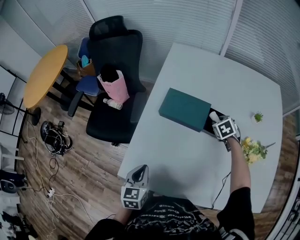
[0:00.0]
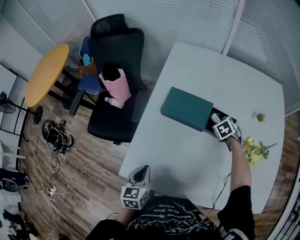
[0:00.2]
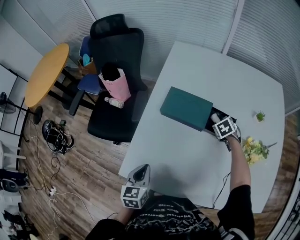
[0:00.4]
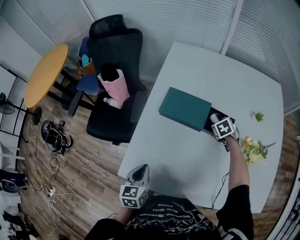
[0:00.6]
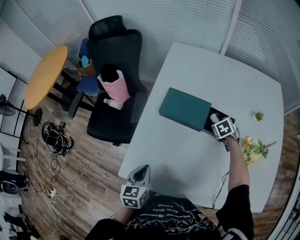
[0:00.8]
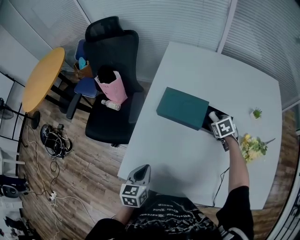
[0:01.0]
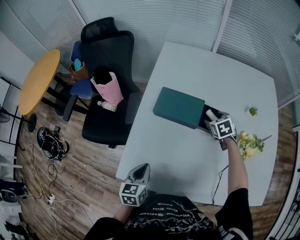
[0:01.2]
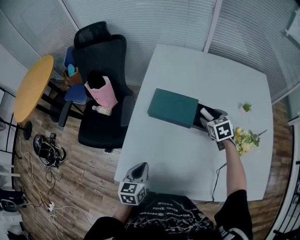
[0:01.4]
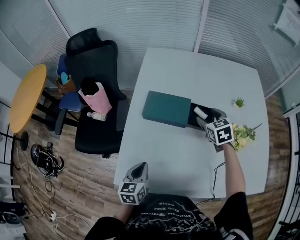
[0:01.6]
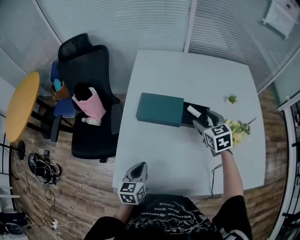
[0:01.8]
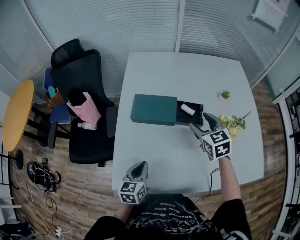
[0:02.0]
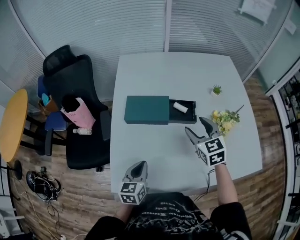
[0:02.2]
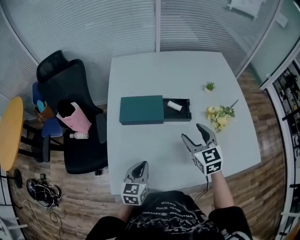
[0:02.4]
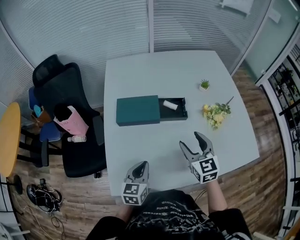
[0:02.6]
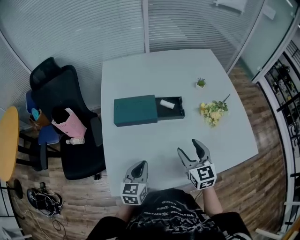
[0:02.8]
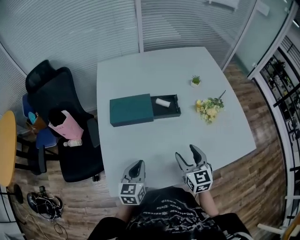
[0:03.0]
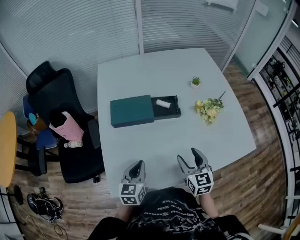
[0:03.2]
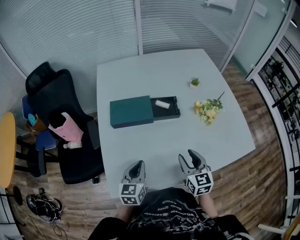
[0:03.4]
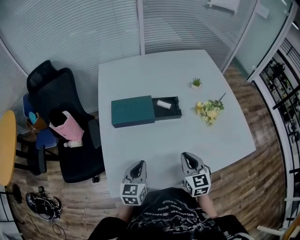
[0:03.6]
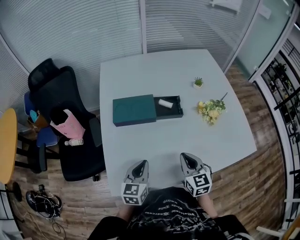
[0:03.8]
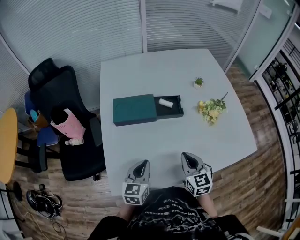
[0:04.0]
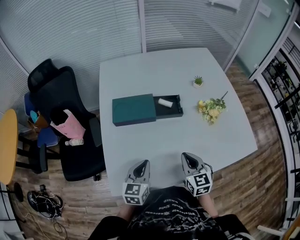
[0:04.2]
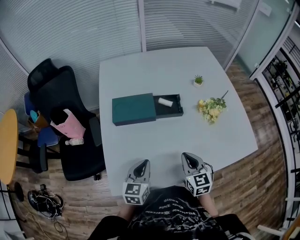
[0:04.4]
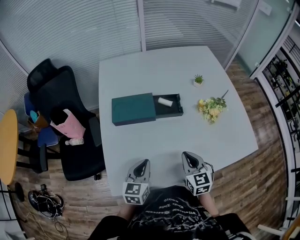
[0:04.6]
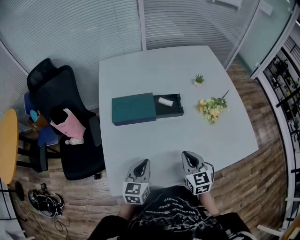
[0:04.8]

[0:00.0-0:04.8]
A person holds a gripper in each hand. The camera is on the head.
0:00.0 to 0:01.6: The right gripper is displaced upward by about 10 cm, turns by roughly 20 degrees, and opens its fingers.
0:01.6 to 0:03.2: The right gripper goes about 25 cm backward, and rotates roughly 30 degrees. The left gripper travels to the right by about 5 cm, and swivels about 20 degrees.
0:03.2 to 0:04.8: The right gripper closes up.

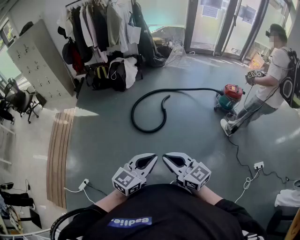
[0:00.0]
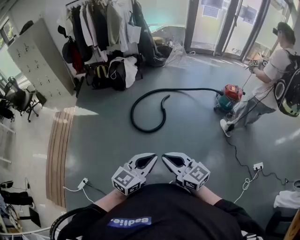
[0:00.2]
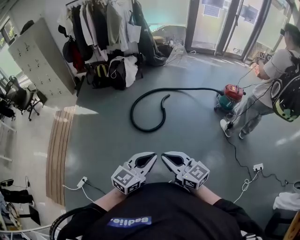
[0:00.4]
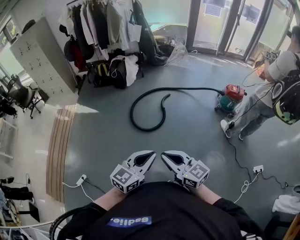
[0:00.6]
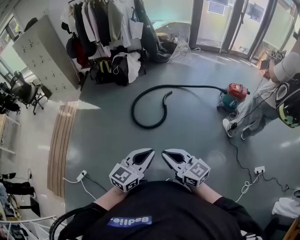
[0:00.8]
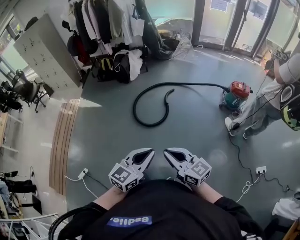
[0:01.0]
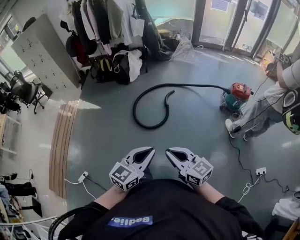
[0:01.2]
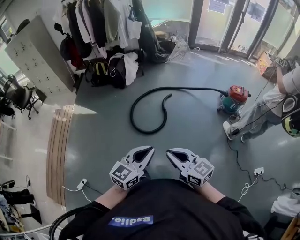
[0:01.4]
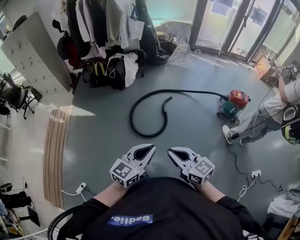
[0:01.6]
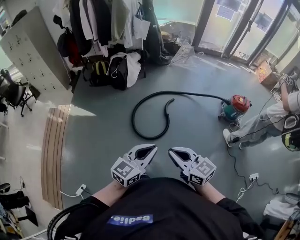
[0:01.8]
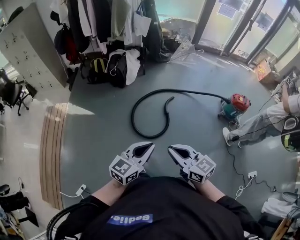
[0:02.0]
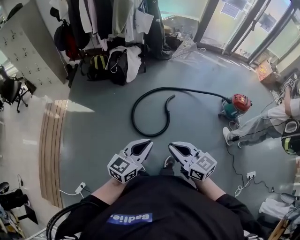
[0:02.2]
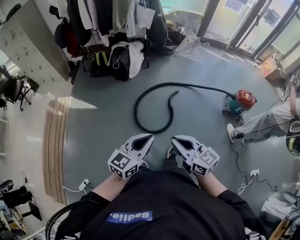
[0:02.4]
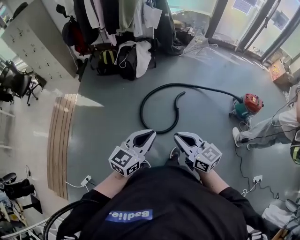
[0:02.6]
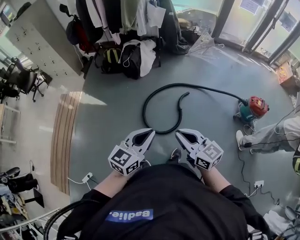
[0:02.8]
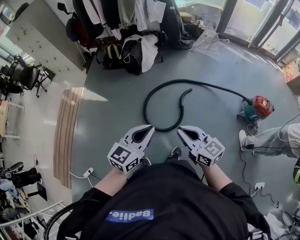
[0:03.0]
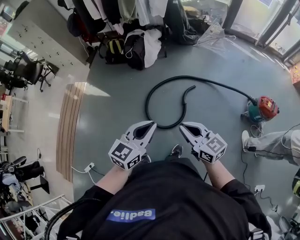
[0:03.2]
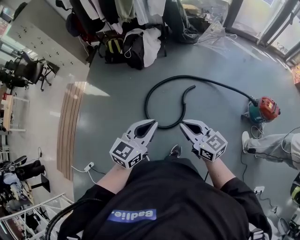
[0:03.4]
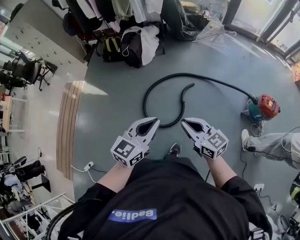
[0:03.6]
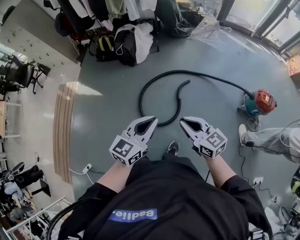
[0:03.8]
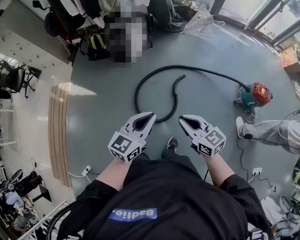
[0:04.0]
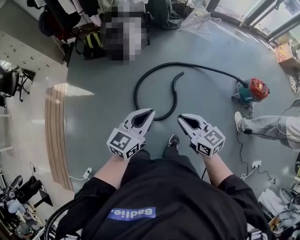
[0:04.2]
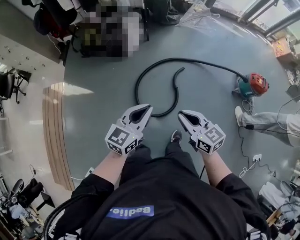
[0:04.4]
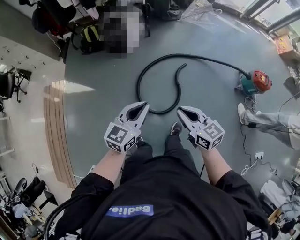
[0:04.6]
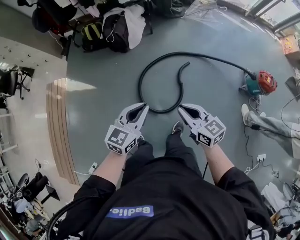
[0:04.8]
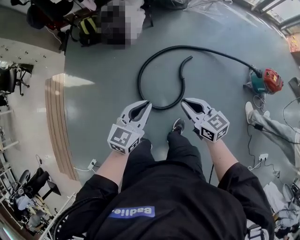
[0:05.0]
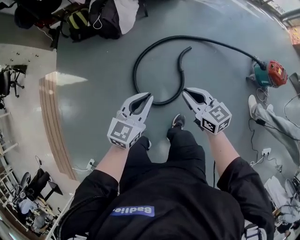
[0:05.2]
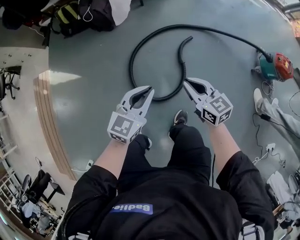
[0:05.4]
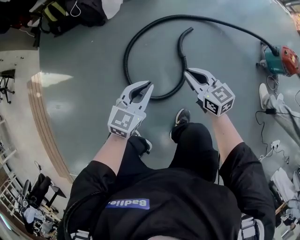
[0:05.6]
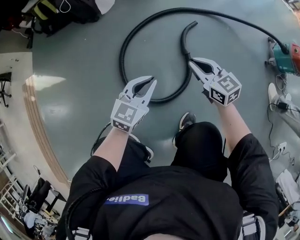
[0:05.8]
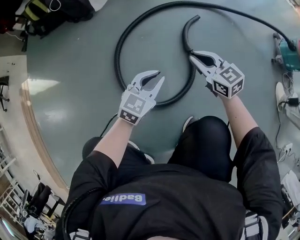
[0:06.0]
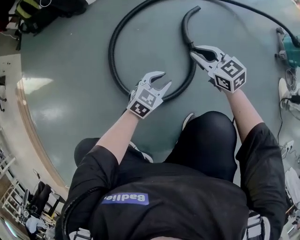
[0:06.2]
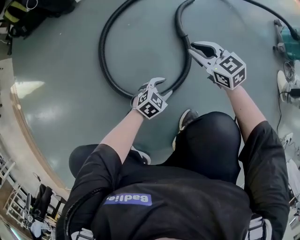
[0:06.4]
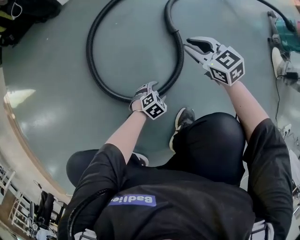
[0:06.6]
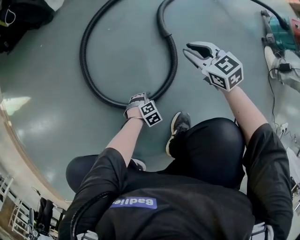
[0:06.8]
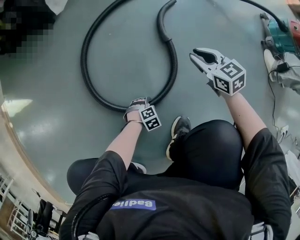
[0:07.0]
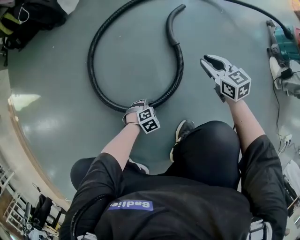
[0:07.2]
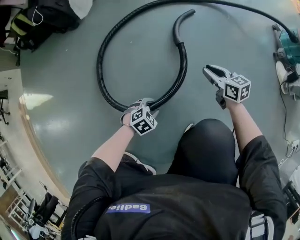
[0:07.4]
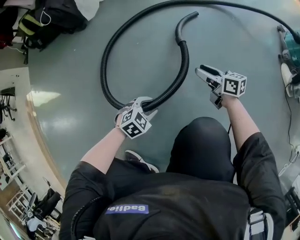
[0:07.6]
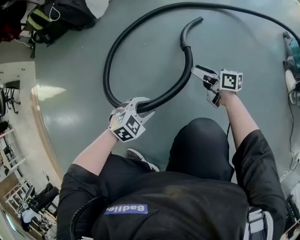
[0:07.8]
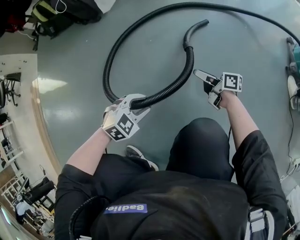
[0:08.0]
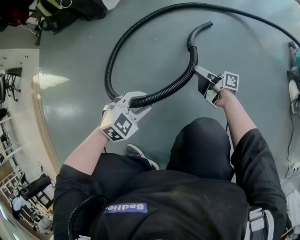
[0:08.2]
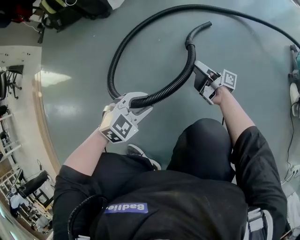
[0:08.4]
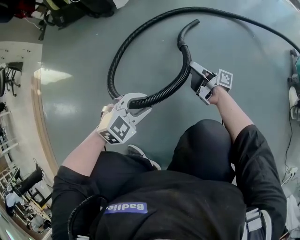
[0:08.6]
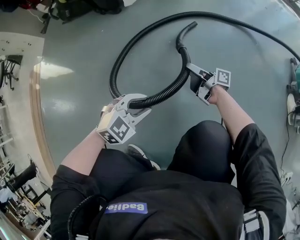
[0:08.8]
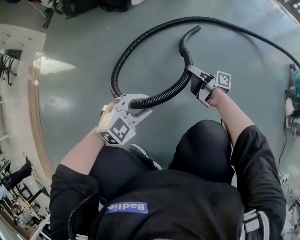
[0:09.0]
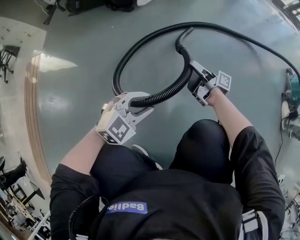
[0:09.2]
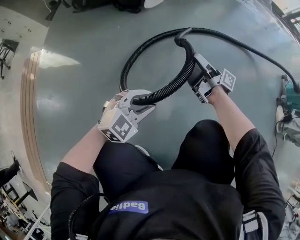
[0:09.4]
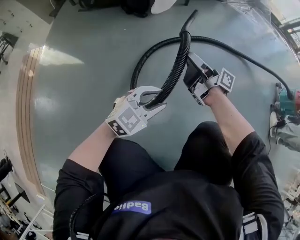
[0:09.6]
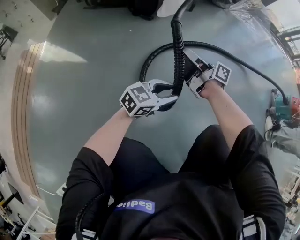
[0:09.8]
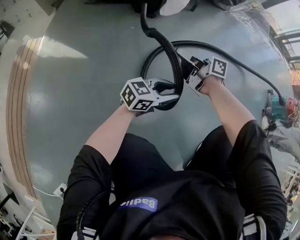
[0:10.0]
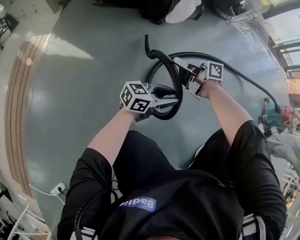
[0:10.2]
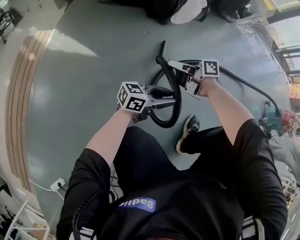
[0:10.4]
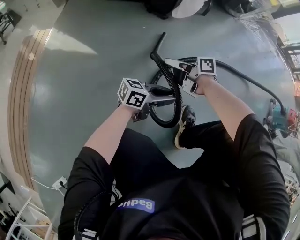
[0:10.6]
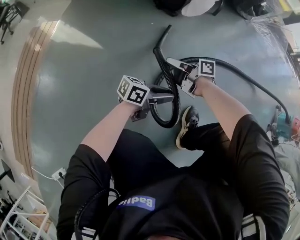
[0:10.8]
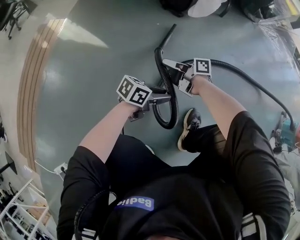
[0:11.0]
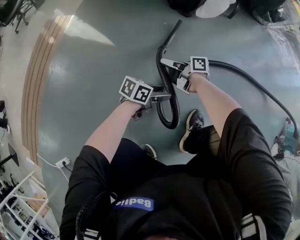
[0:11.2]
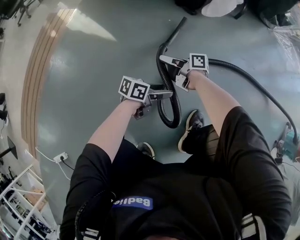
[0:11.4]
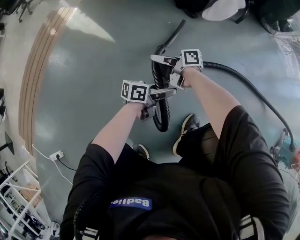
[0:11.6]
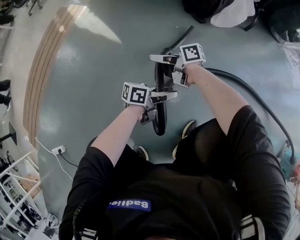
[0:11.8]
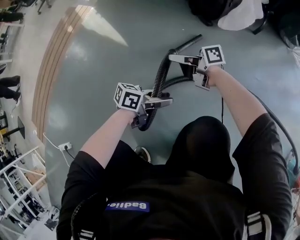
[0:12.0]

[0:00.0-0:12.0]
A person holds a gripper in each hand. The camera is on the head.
0:00.0 to 0:01.6: The grippers both shift forward by some 20 cm.
0:01.6 to 0:03.0: Both grippers travel together forward, some 25 cm.
0:03.0 to 0:04.4: The grippers both shift forward, downward and to the left by roughly 15 cm.
0:04.4 to 0:06.0: The two grippers go about 60 cm downward. The left gripper swivels roughly 20 degrees.
0:06.0 to 0:07.6: Both grippers move downward, roughly 15 cm. The right gripper twists about 40 degrees clockwise, seen from behind, and opens up, while the left gripper tilts its fingers approximately 30 degrees downward, and opens its fingers.
0:07.6 to 0:09.0: The left gripper travels upward by about 15 cm, and changes its angle by roughly 20 degrees. Meanwhile the right gripper moves approximately 20 cm, and turns by some 40 degrees.
0:09.0 to 0:10.4: The left gripper shifts by roughly 20 cm, and tilts its fingers roughly 40 degrees upward; the right gripper ends up approximately 40 cm from where it was, swivels about 40 degrees, and closes up.
0:10.4 to 0:12.0: The right gripper ends up some 15 cm from where it was, and turns by roughly 30 degrees; the left gripper moves approximately 15 cm, changes its angle by about 40 degrees, and opens, then closes again.

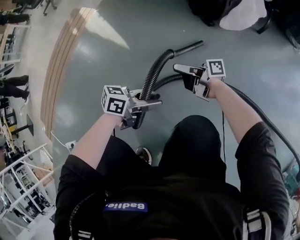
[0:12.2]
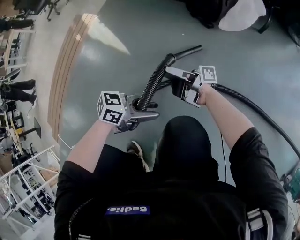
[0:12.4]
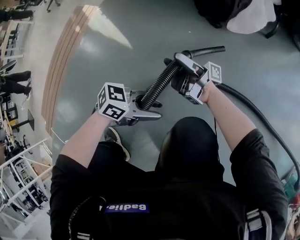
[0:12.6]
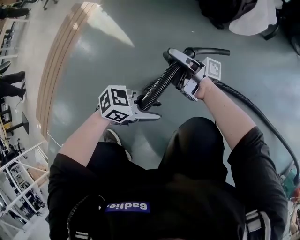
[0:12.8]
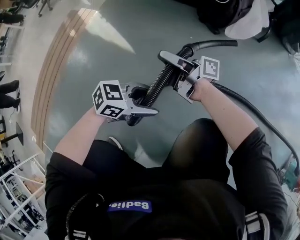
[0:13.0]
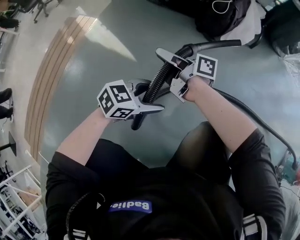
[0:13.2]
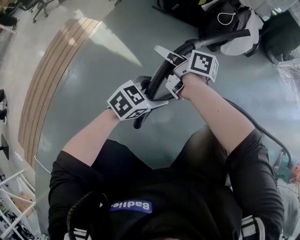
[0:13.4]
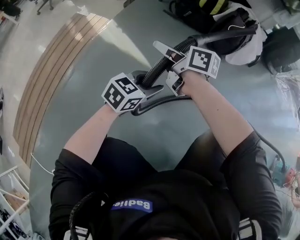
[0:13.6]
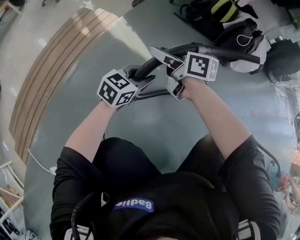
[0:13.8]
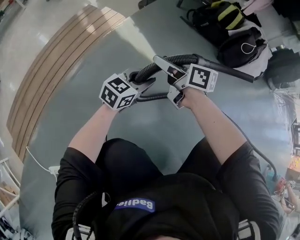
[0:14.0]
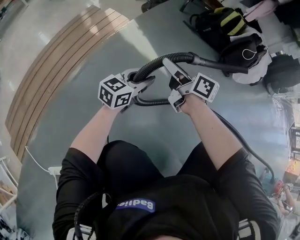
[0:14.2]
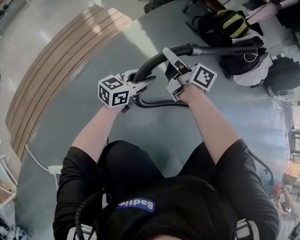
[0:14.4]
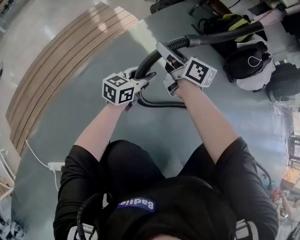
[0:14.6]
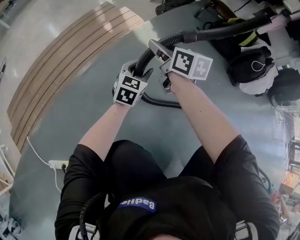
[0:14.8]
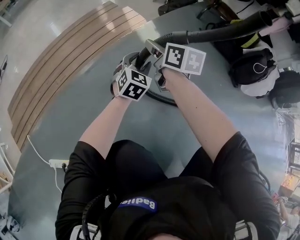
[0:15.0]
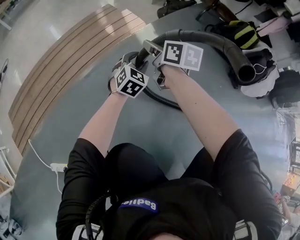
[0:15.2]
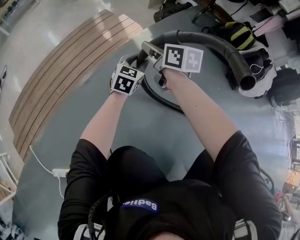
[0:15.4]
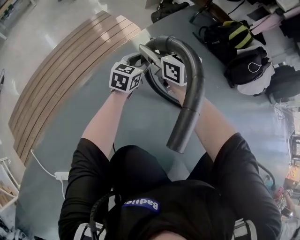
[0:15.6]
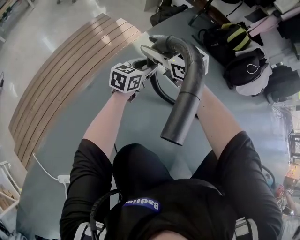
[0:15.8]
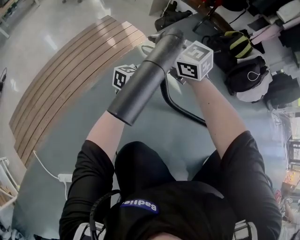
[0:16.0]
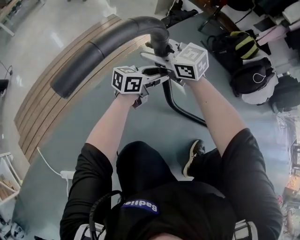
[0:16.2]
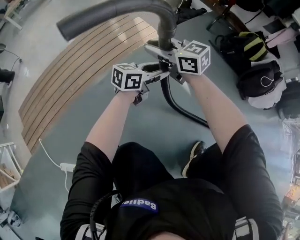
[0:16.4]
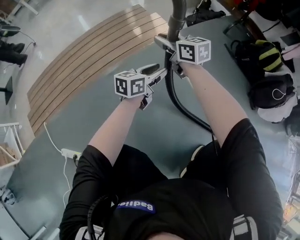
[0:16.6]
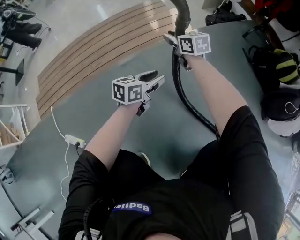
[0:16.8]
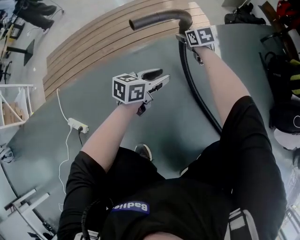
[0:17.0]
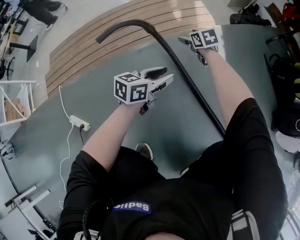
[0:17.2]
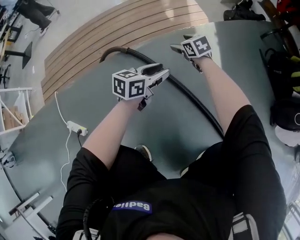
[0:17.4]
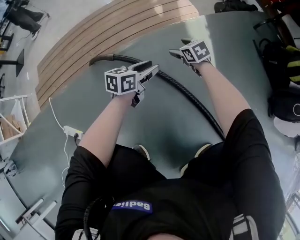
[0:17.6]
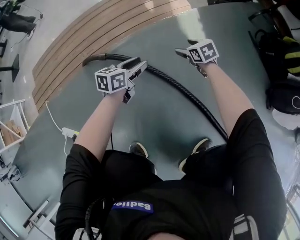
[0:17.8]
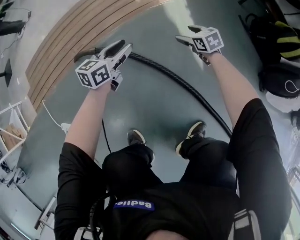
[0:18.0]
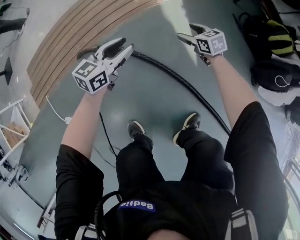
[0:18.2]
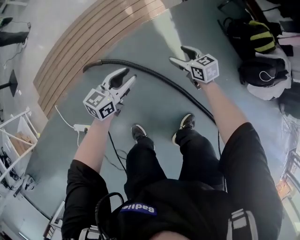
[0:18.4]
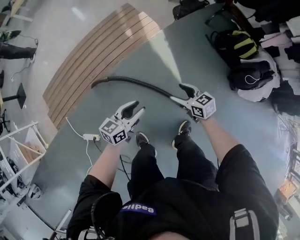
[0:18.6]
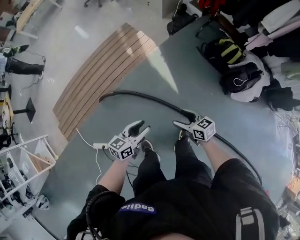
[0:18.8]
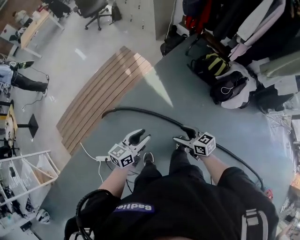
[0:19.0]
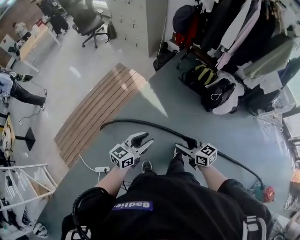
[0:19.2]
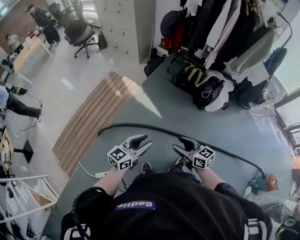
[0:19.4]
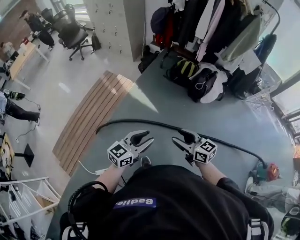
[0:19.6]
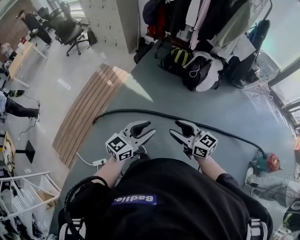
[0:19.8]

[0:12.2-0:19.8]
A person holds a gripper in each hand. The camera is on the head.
0:12.2 to 0:13.8: The right gripper changes place by roughly 40 cm, and turns by about 50 degrees, while the left gripper ends up approximately 40 cm from where it was, changes its angle by some 50 degrees, and opens, then closes again.
0:13.8 to 0:15.2: The right gripper travels to the left by about 20 cm, while the left gripper shifts roughly 20 cm to the left and forward, and rotates about 40 degrees.
0:15.2 to 0:16.8: The left gripper travels upward and back again, some 10 cm each way, and rotates around the line of its fingers by about 50 degrees, counterclockwise from behind; the right gripper shifts by approximately 15 cm, and changes its angle by about 40 degrees.
0:16.8 to 0:18.2: The left gripper shifts about 10 cm upward and forward. The right gripper travels to the right by roughly 15 cm, and opens up.
0:18.2 to 0:19.8: The pair of grippers is taken some 60 cm. The grippers both shift upward by about 70 cm. The right gripper tips its fingers upward by roughly 30 degrees, while the left gripper swivels roughly 40 degrees.
